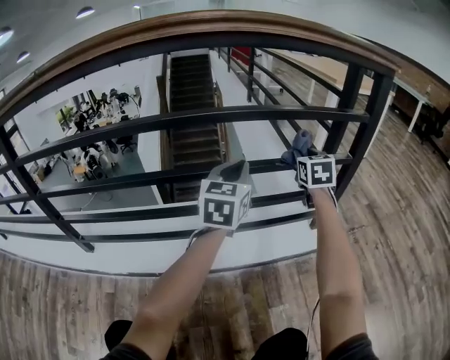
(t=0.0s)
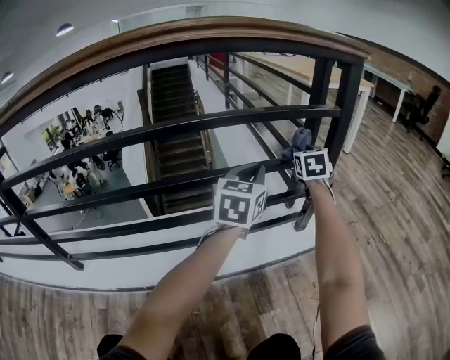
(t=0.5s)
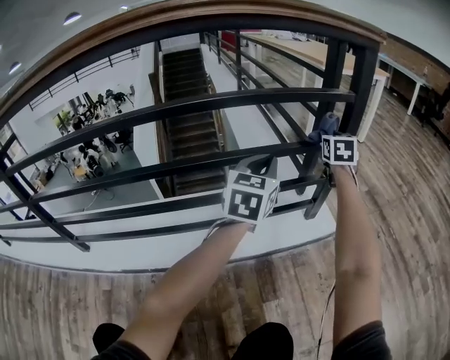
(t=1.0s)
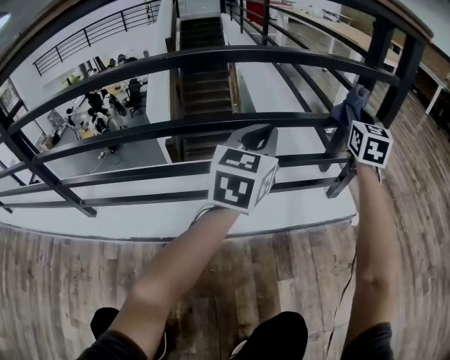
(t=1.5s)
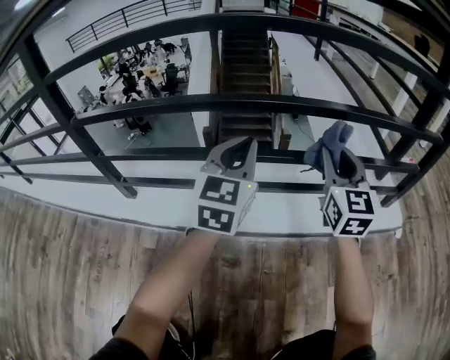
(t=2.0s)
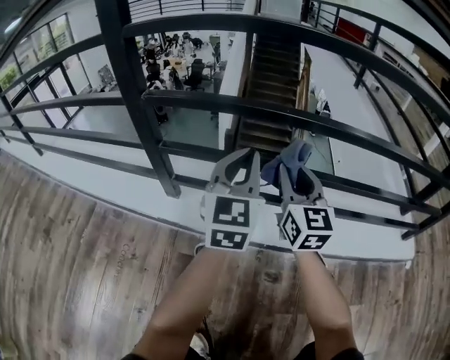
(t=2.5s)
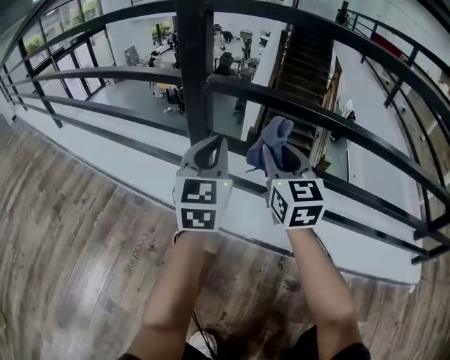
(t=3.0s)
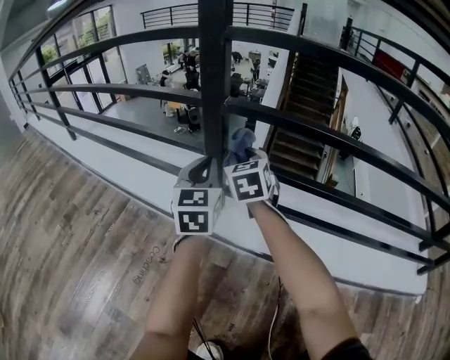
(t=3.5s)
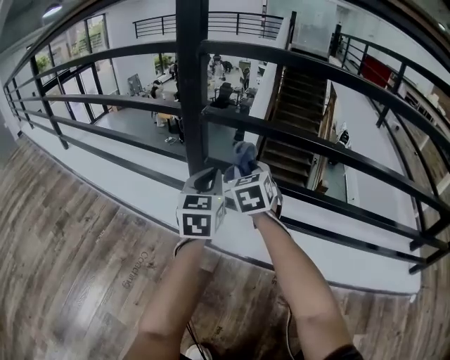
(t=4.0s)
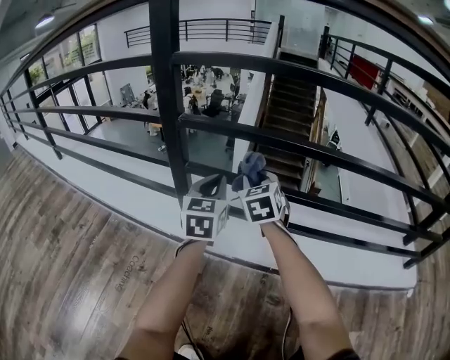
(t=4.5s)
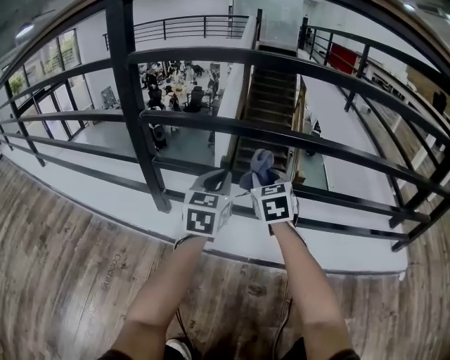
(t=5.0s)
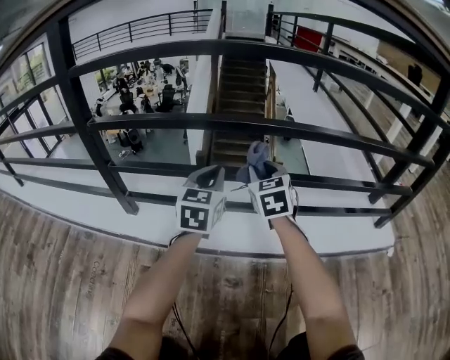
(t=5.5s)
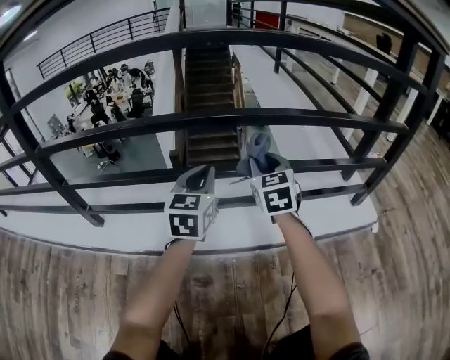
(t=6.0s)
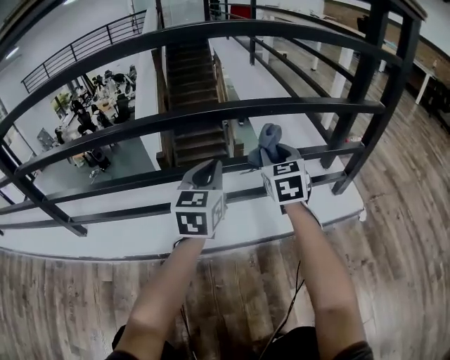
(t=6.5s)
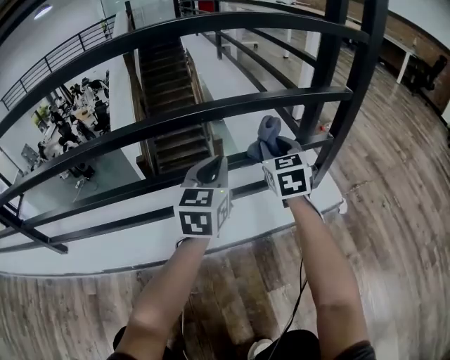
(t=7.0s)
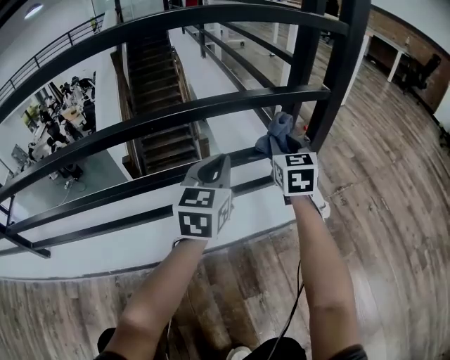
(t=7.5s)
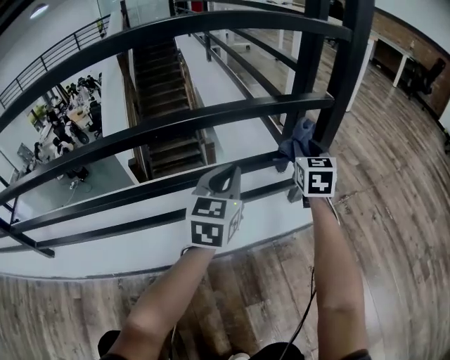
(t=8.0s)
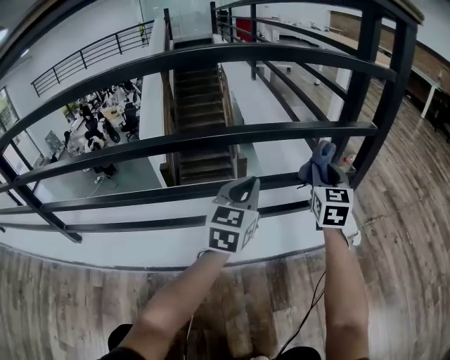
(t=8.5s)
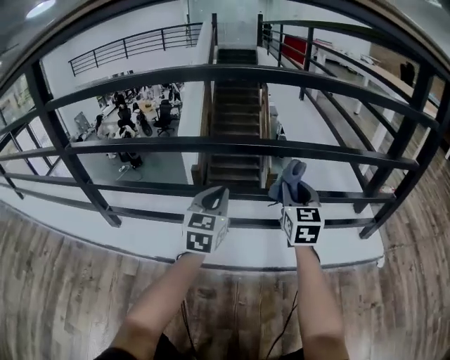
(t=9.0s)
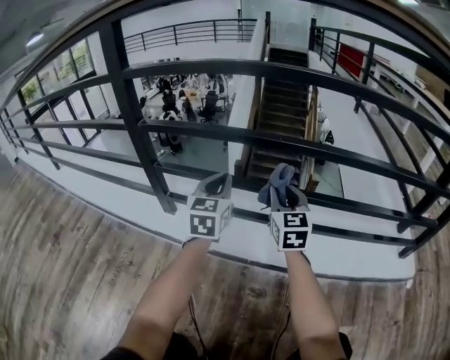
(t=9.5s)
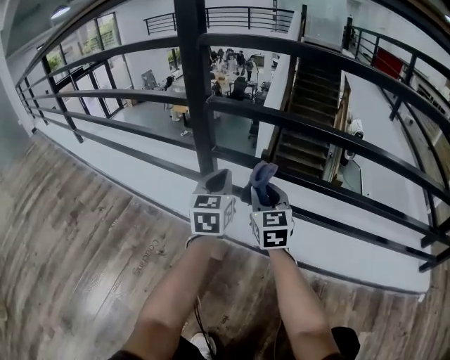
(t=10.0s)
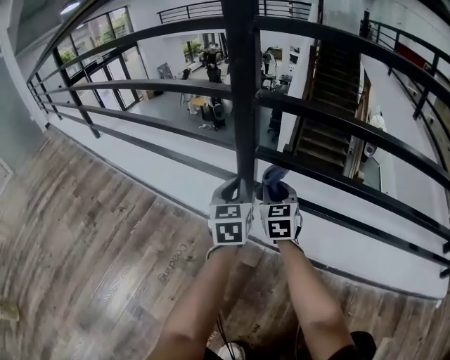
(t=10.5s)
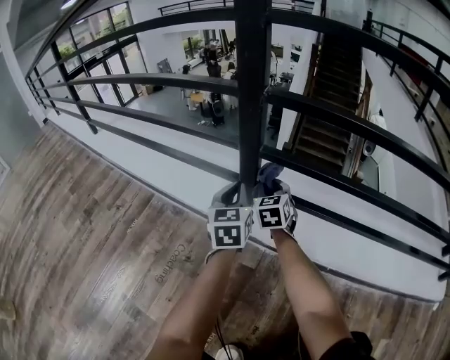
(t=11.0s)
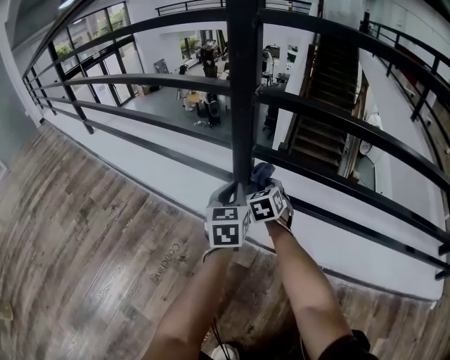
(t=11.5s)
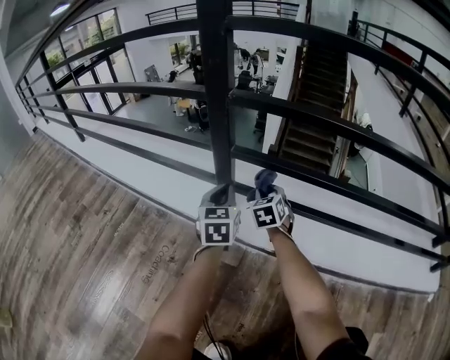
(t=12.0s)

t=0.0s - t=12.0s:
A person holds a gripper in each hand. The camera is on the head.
t=0.0s - t=2.0s: The right gripper travels to the left, backward and downward by approximately 35 cm, and swivels approximately 20 degrees. Meanwhile the left gripper heads to the left, downward and backward, covering approximately 30 cm.
t=2.0s - t=4.0s: The two grippers travel together, about 50 cm. The left gripper turns by roughly 30 degrees. Meanwhile the right gripper swivels approximately 40 degrees.
t=4.0s - t=6.0s: Both grippers are carried some 50 cm. The left gripper rotates approximately 30 degrees; the right gripper rotates roughly 20 degrees.
t=6.0s - t=8.0s: Both grippers are carried to the right, about 50 cm. The right gripper swivels approximately 30 degrees.
t=8.0s - t=10.0s: Both grippers are carried some 1 m. The left gripper swivels some 50 degrees; the right gripper rotates some 50 degrees.
t=10.0s - t=12.0s: The right gripper is displaced downward and forward by approximately 15 cm, and rotates about 30 degrees, while the left gripper moves downward and to the left, approximately 10 cm.

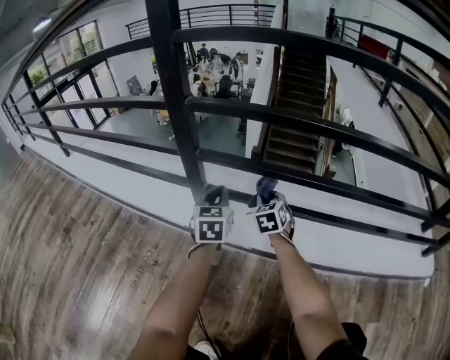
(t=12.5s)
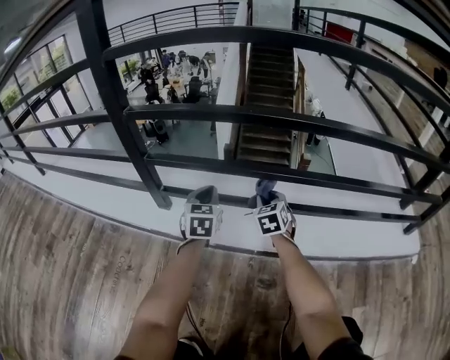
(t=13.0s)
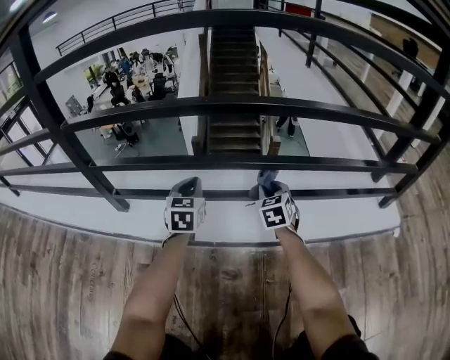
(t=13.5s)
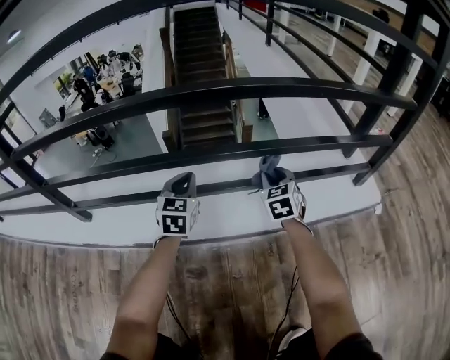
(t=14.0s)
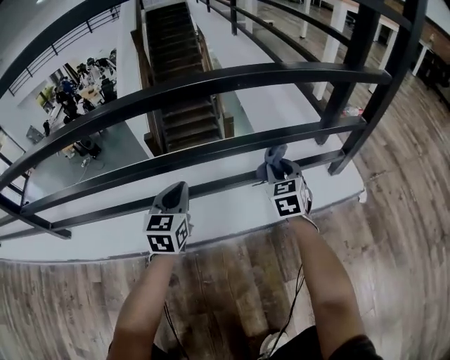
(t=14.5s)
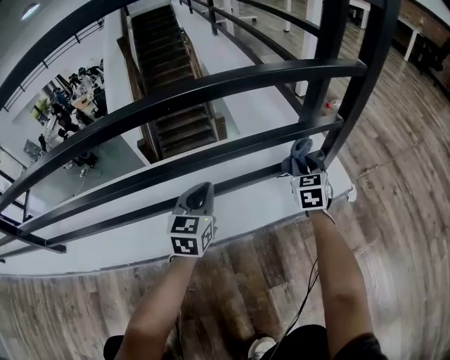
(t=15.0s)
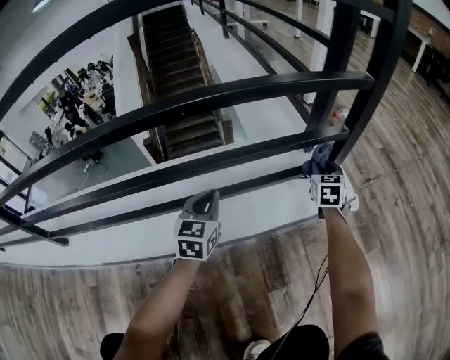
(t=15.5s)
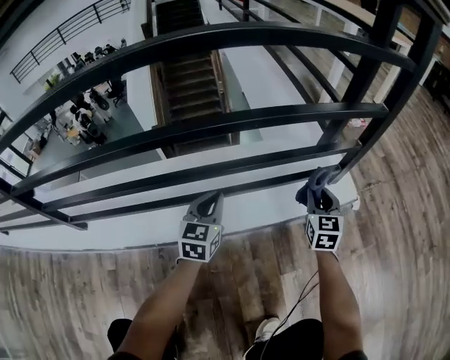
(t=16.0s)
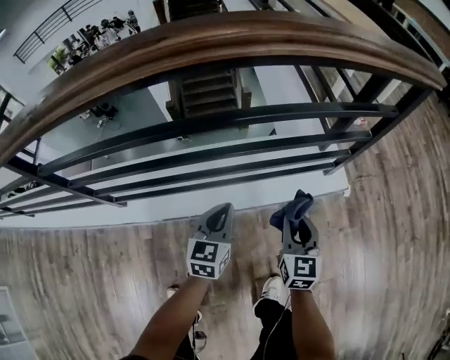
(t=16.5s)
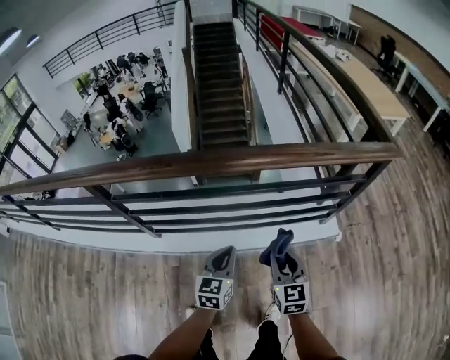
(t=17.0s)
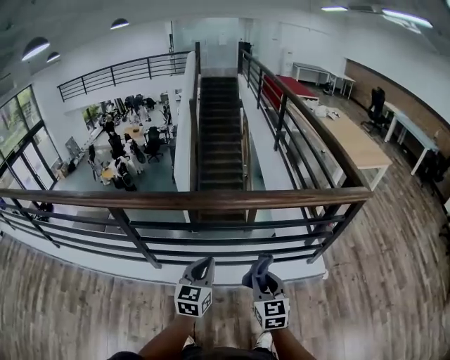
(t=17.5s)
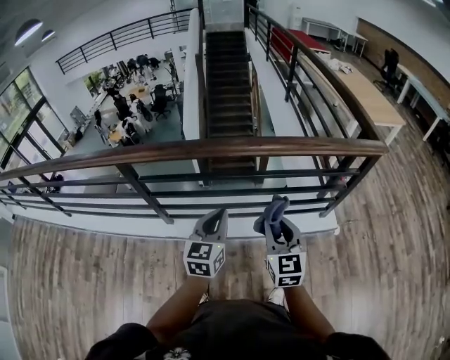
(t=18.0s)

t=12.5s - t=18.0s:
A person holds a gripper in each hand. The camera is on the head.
t=12.5s - t=14.5s: The pair of grippers is taken roughly 70 cm. The right gripper rotates about 30 degrees. Meanwhile the left gripper changes its angle by some 30 degrees.
t=14.5s - t=16.0s: The right gripper is displaced to the right, upward and backward by some 15 cm. Meanwhile the left gripper goes approximately 10 cm to the right and upward.
t=16.0s - t=18.0s: The right gripper heads upward, to the left and backward, covering roughly 80 cm, and rotates some 30 degrees. Meanwhile the left gripper moves upward and backward, about 70 cm.

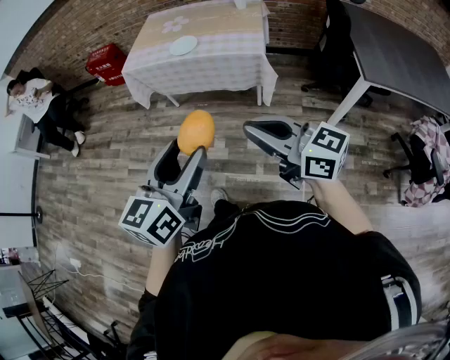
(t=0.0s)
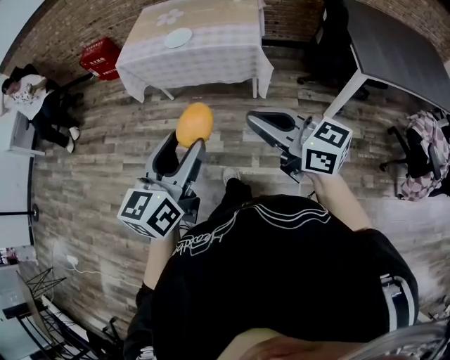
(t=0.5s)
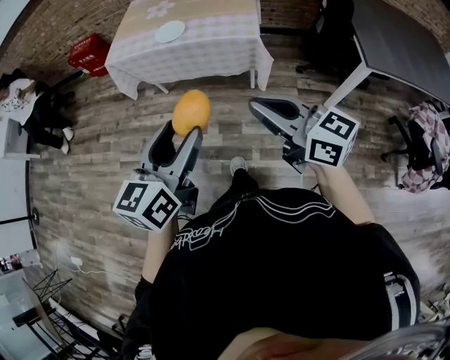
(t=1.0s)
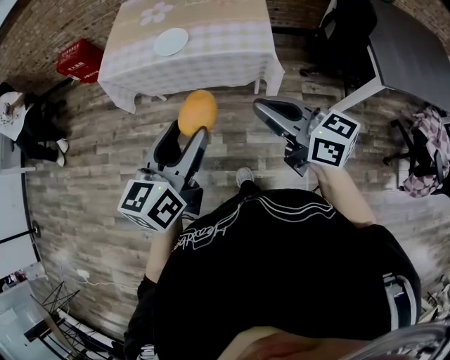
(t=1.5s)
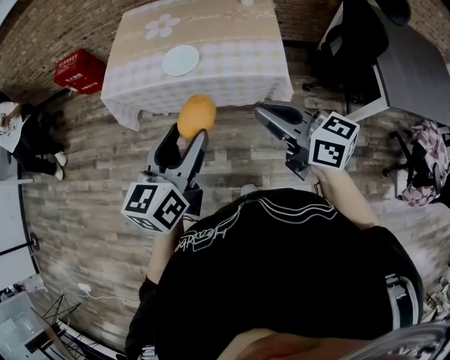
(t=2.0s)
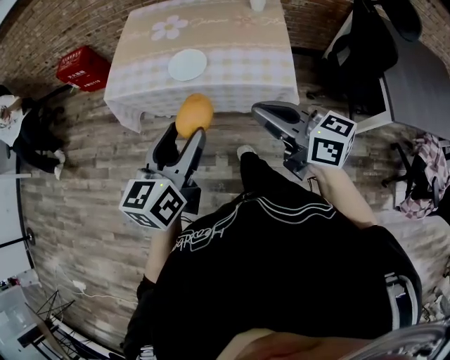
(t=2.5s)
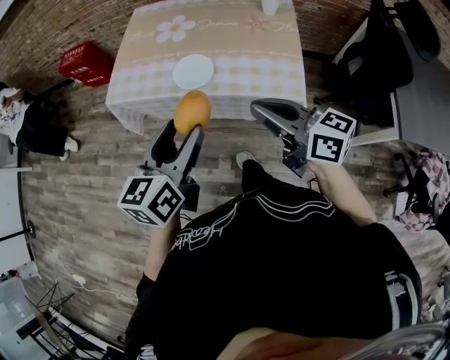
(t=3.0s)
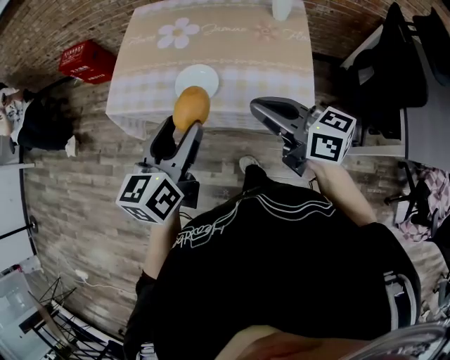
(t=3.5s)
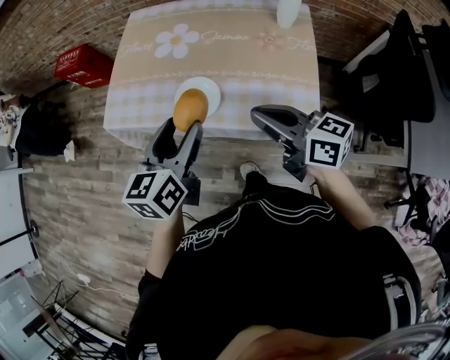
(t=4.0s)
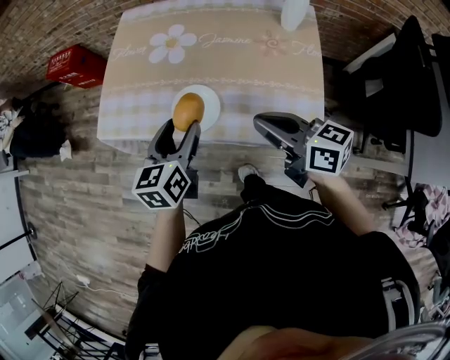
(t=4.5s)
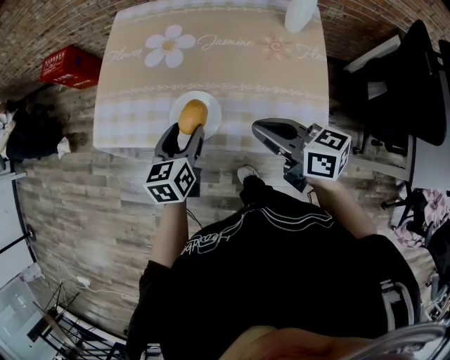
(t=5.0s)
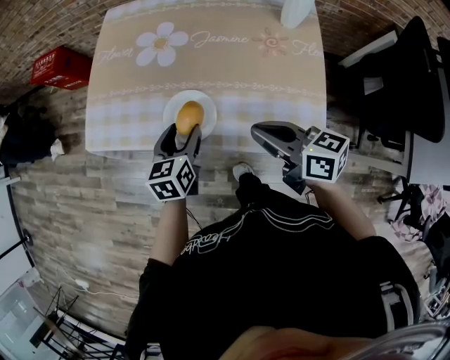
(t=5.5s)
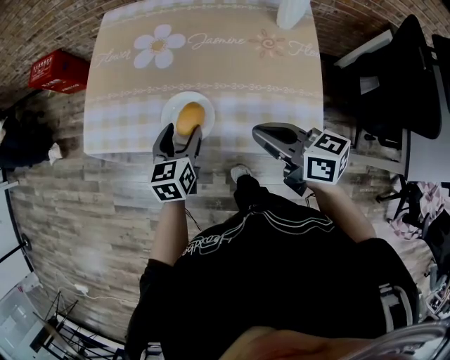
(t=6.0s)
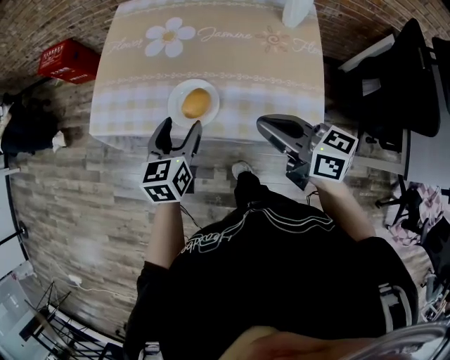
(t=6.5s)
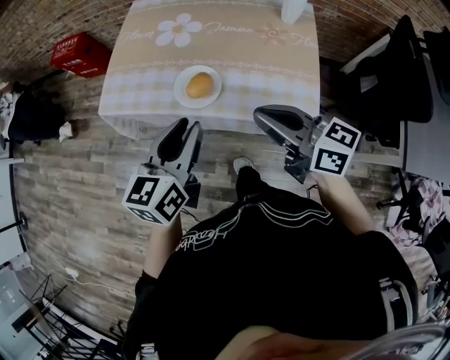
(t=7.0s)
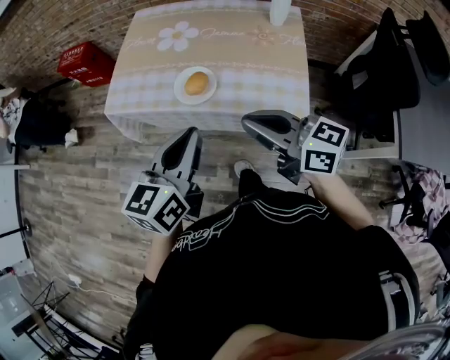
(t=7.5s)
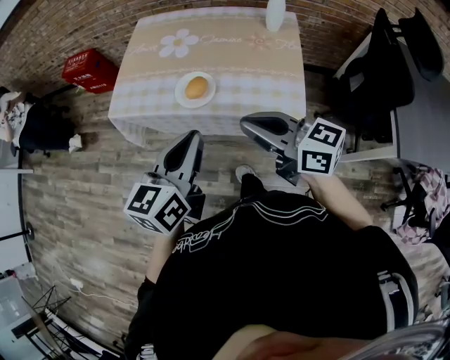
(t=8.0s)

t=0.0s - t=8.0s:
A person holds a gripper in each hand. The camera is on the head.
t=0.0s - t=2.0s: Both grippers move forward, approximately 35 cm.
t=2.0s - t=4.0s: Both grippers move forward, approximately 25 cm.
t=4.0s - t=6.0s: The left gripper shifts approximately 20 cm downward and forward, while the right gripper shifts some 10 cm downward.
t=6.0s - t=8.0s: The left gripper moves upward and backward, about 35 cm, turns by approximately 20 degrees, and closes its fingers. Meanwhile the right gripper shifts about 20 cm backward, upward and to the left, and turns by about 20 degrees.

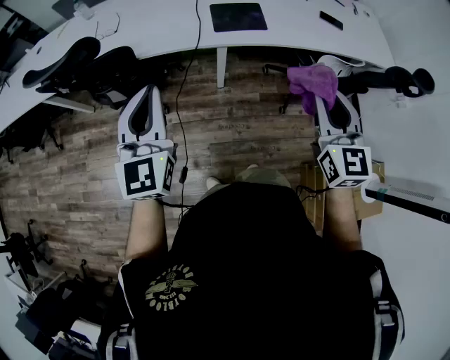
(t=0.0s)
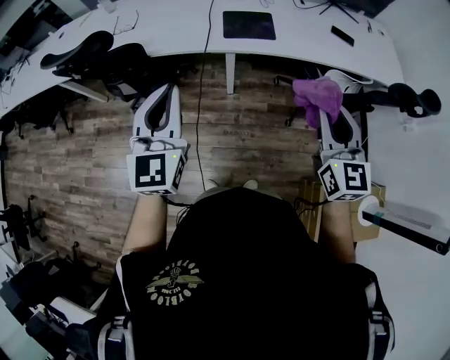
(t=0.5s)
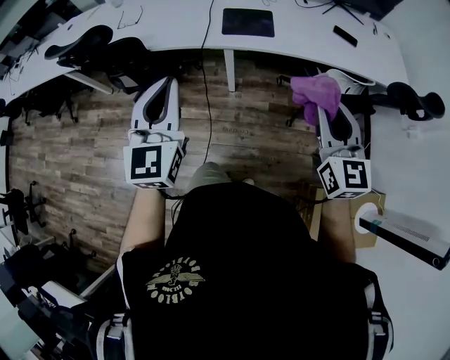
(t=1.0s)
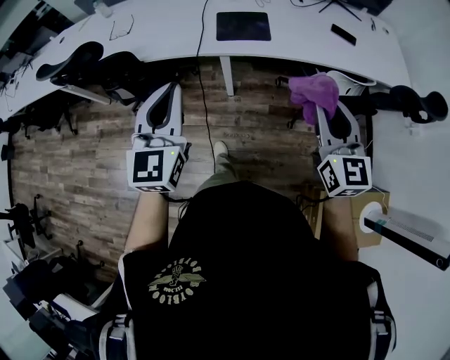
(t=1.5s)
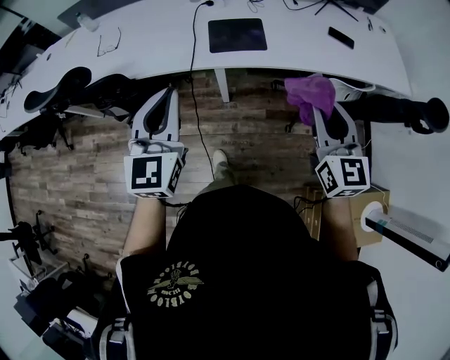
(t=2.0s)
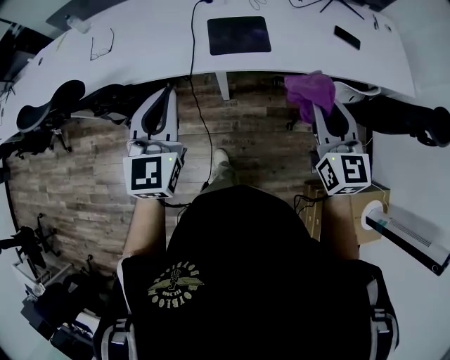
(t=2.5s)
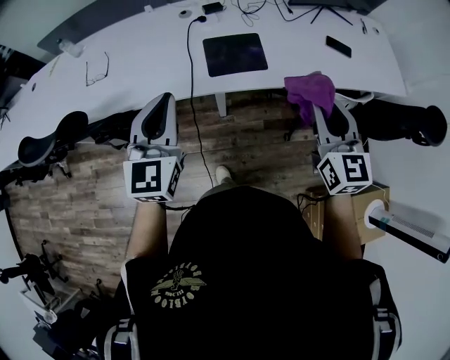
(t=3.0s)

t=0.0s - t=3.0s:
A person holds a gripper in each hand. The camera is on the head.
t=0.0s - t=1.5s: Both grippers move to the right, some 10 cm.
t=1.5s - t=3.0s: Both grippers move forward, some 20 cm.
